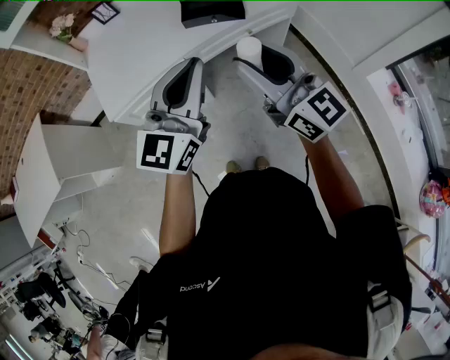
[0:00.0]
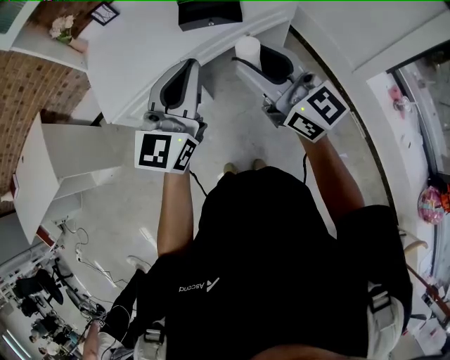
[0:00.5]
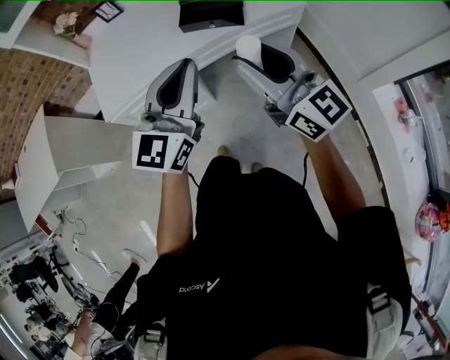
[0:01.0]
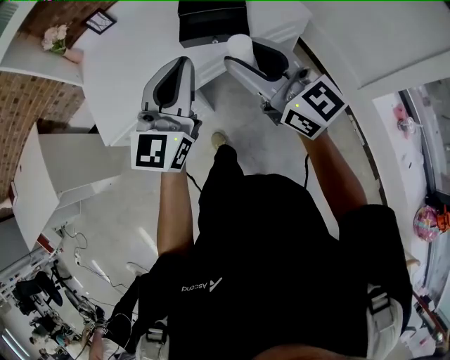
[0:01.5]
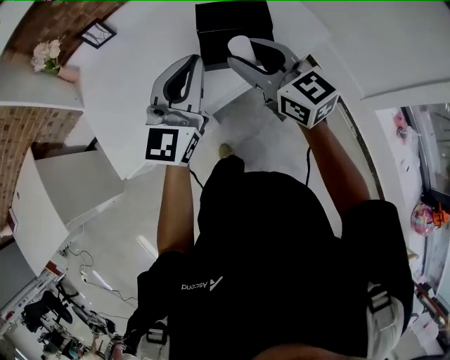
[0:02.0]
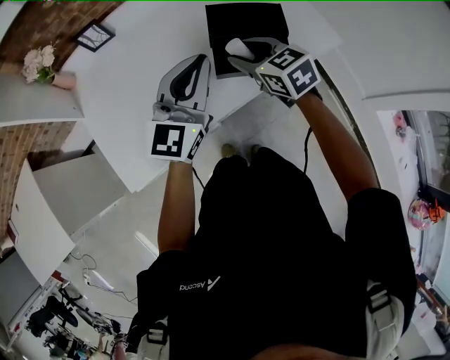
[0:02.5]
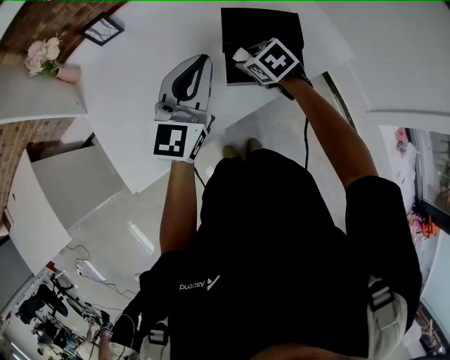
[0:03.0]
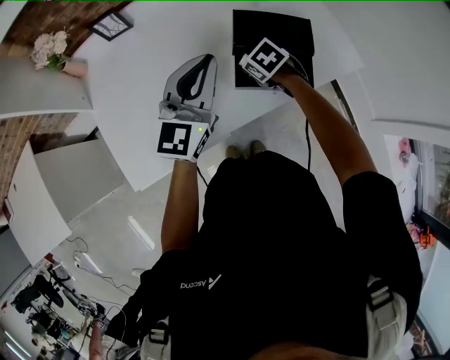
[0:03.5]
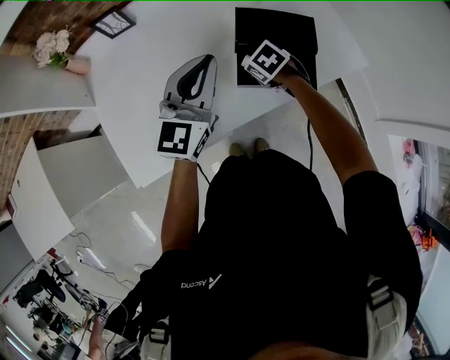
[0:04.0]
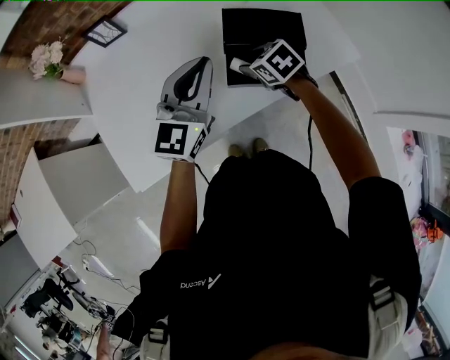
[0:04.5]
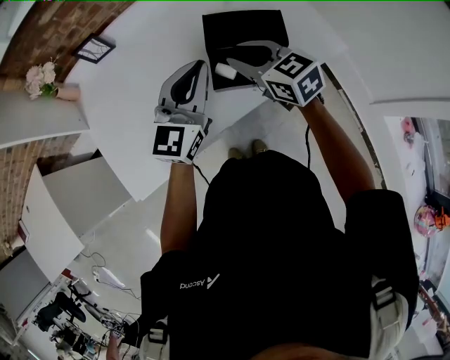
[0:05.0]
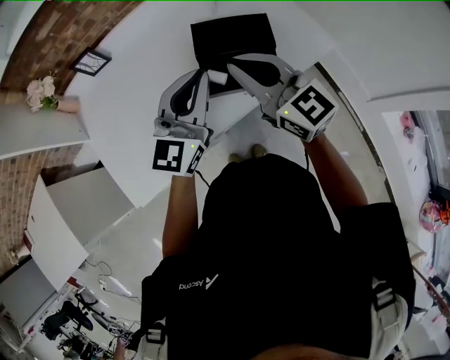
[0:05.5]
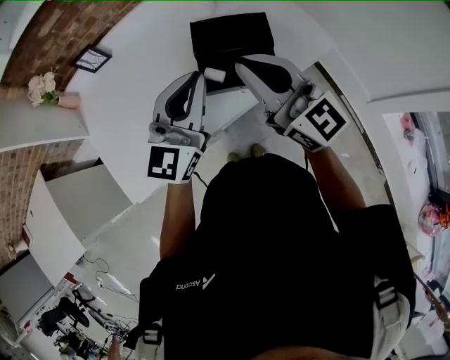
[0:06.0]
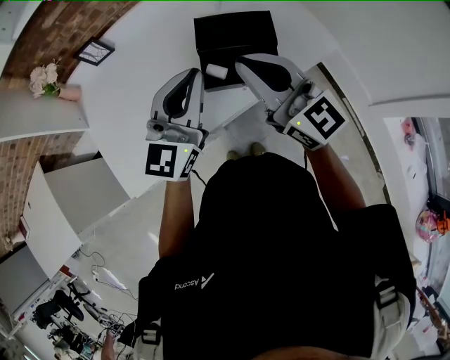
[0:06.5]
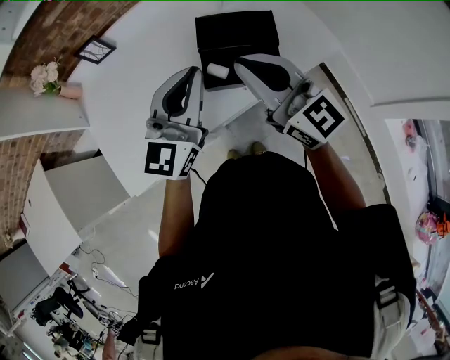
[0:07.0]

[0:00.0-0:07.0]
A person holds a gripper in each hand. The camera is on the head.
0:00.0 to 0:02.0: Both grippers travel together forward, some 35 cm.
0:02.0 to 0:03.5: The right gripper travels downward and forward by roughly 30 cm, and tips its fingers downward by roughly 60 degrees, while the left gripper heads forward, covering about 15 cm.
0:03.5 to 0:05.0: The right gripper shifts about 15 cm upward, and angles its fingers upward, by approximately 40 degrees. The left gripper travels to the right by approximately 5 cm.
0:05.0 to 0:07.0: The right gripper shifts roughly 15 cm upward and backward, tips its fingers upward by approximately 30 degrees, and closes. Meanwhile the left gripper changes place by roughly 5 cm.

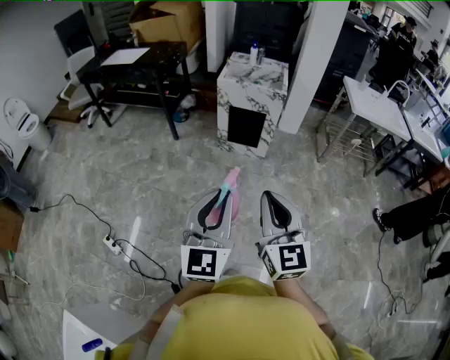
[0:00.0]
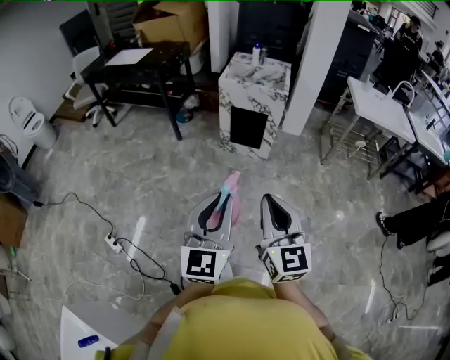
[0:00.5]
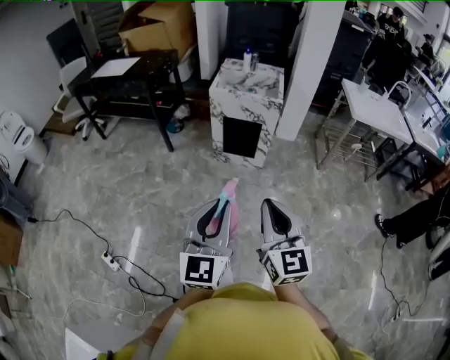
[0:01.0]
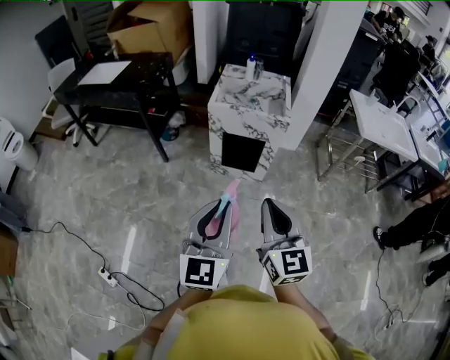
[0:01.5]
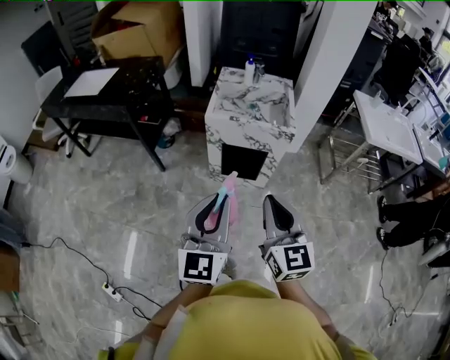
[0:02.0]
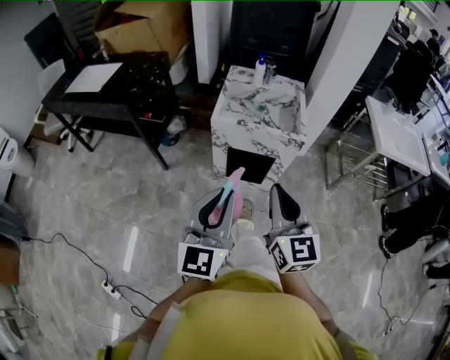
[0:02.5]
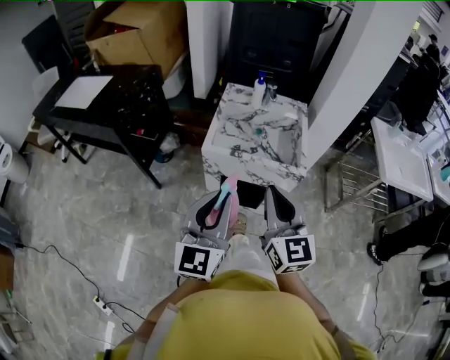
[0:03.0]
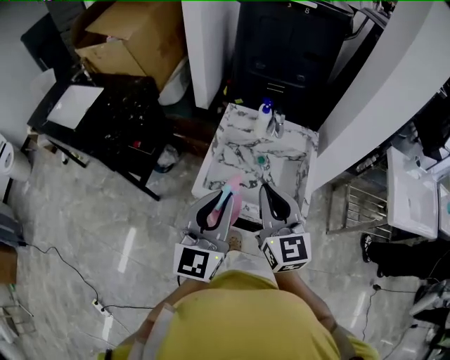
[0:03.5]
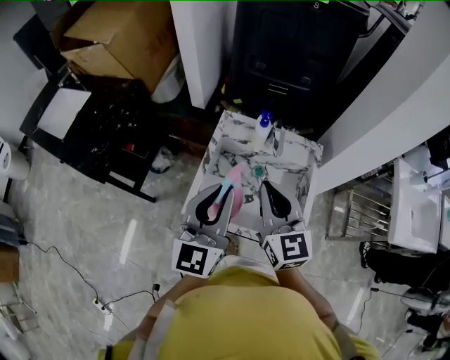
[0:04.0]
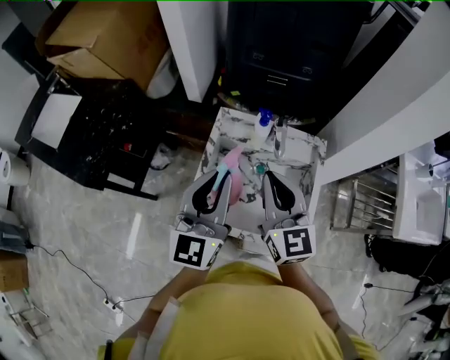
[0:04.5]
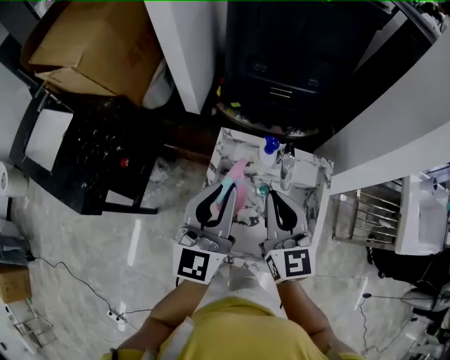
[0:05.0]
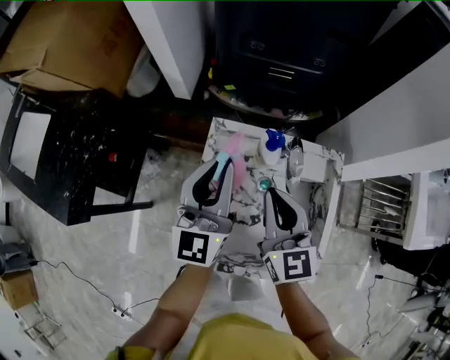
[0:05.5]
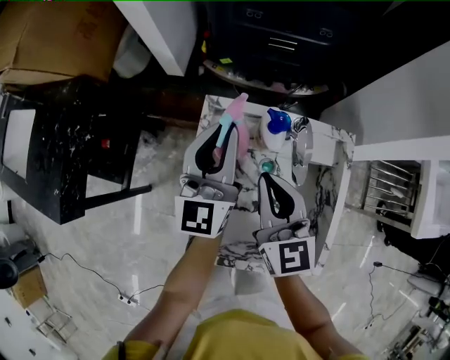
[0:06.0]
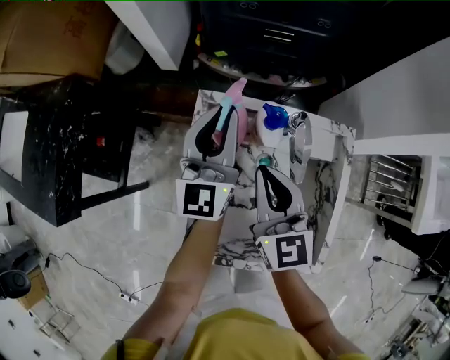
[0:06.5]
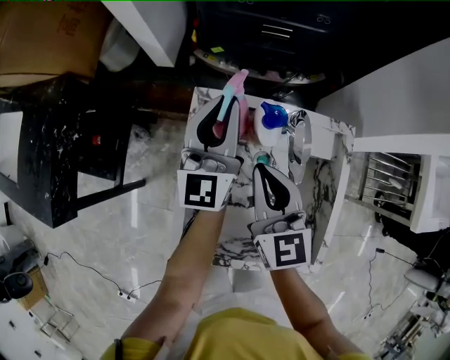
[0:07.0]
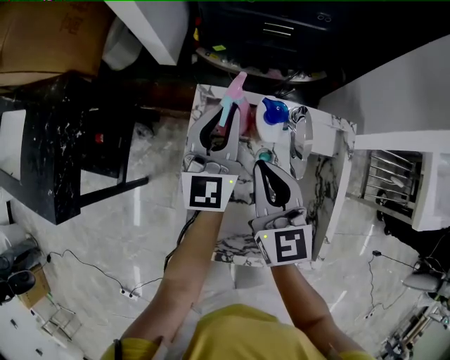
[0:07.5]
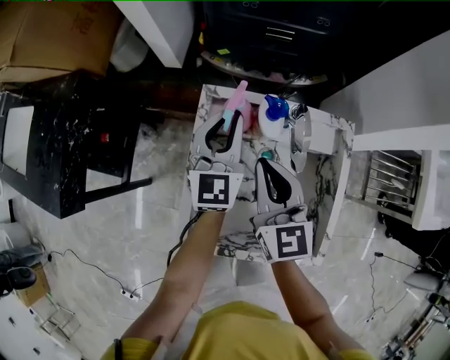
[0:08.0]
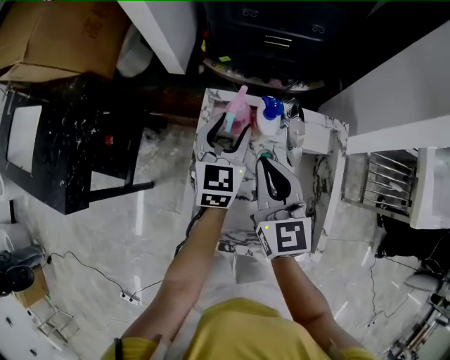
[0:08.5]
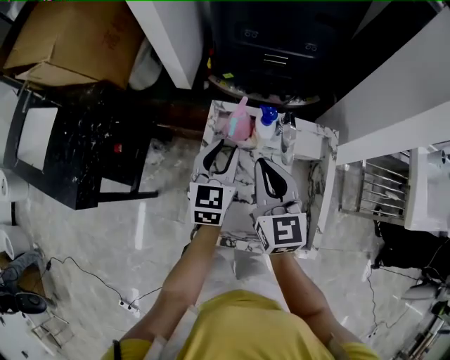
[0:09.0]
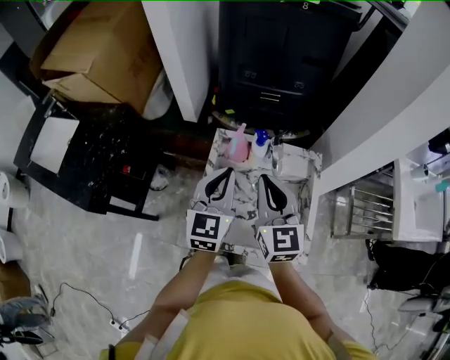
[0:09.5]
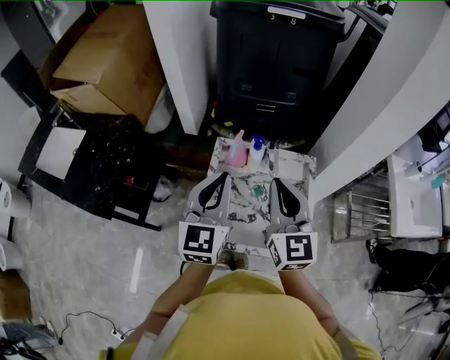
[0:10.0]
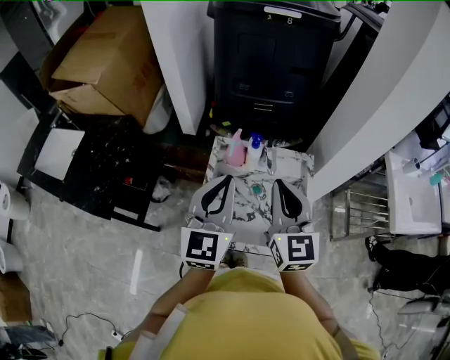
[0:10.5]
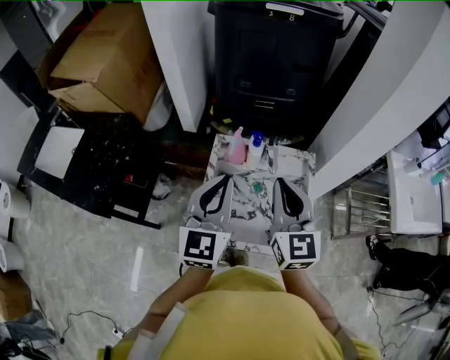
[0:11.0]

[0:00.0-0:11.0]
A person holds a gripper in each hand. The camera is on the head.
0:00.0 to 0:02.0: The two grippers go approximately 40 cm forward.
0:02.0 to 0:03.5: The two grippers travel together, forward, approximately 40 cm.
0:03.5 to 0:05.5: The right gripper heads forward and downward, covering approximately 30 cm; the left gripper shifts about 35 cm forward.
0:05.5 to 0:07.5: The right gripper moves downward, about 5 cm. Meanwhile the left gripper heads downward and forward, covering about 15 cm.
0:07.5 to 0:09.0: The left gripper moves backward, about 10 cm, swivels some 20 degrees, and opens up. The right gripper moves upward, roughly 5 cm.
0:09.0 to 0:11.0: Both grippers travel together upward and backward, about 20 cm. The left gripper closes.

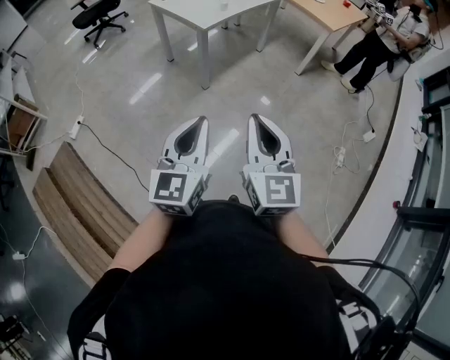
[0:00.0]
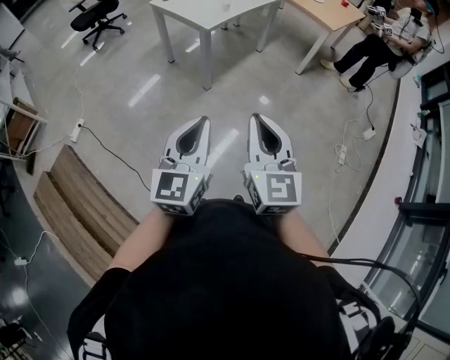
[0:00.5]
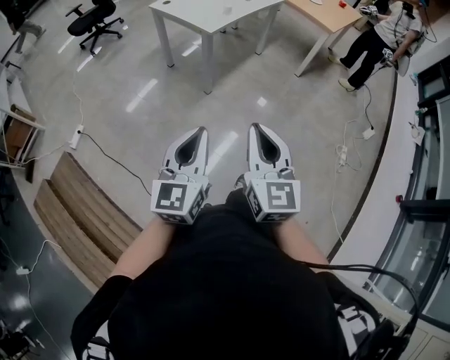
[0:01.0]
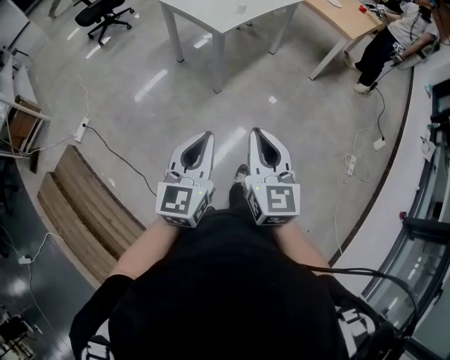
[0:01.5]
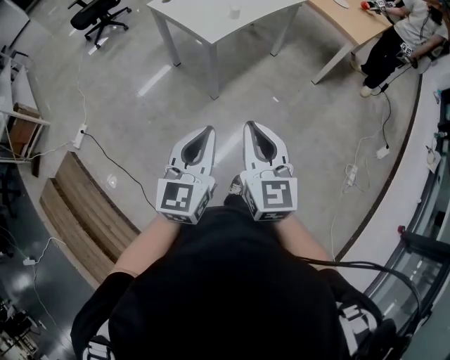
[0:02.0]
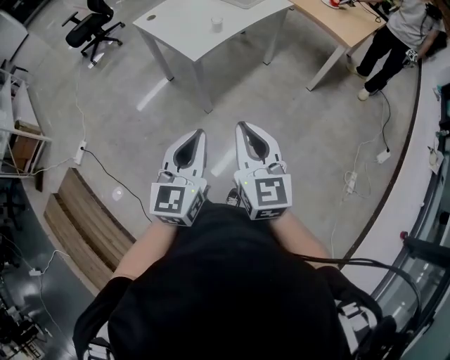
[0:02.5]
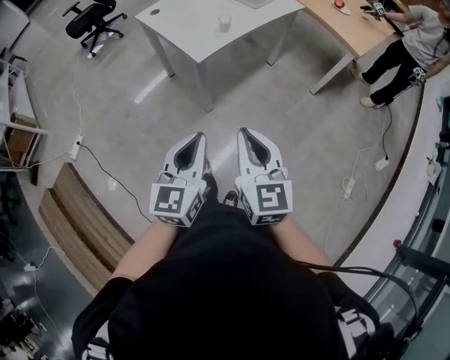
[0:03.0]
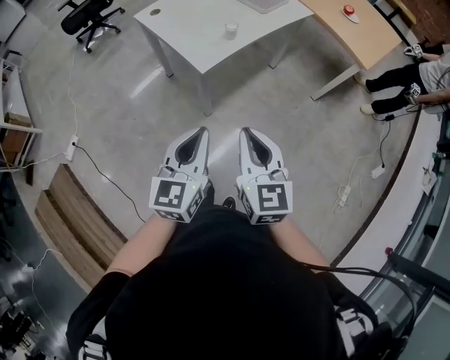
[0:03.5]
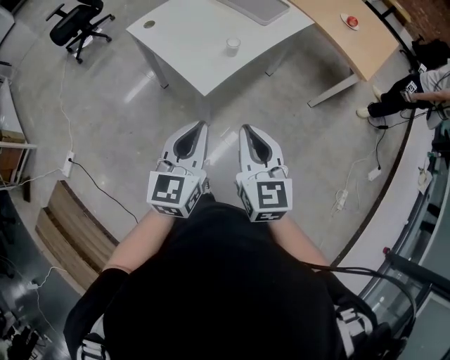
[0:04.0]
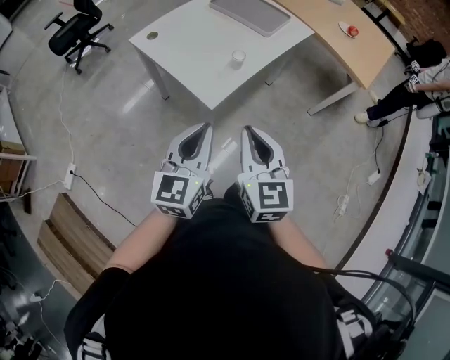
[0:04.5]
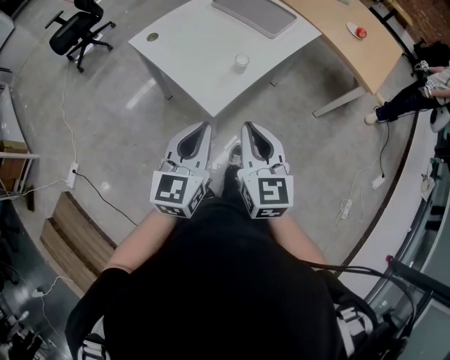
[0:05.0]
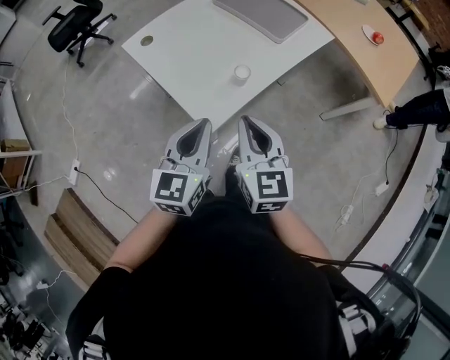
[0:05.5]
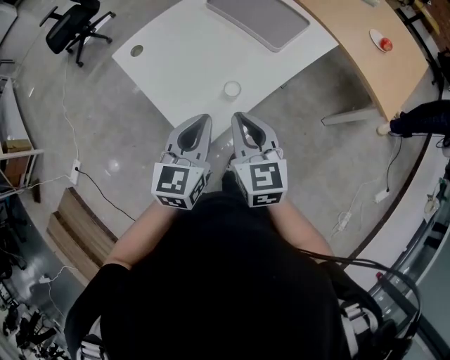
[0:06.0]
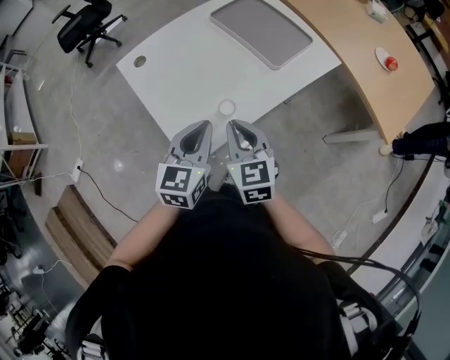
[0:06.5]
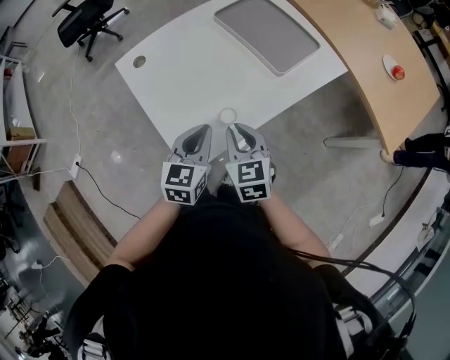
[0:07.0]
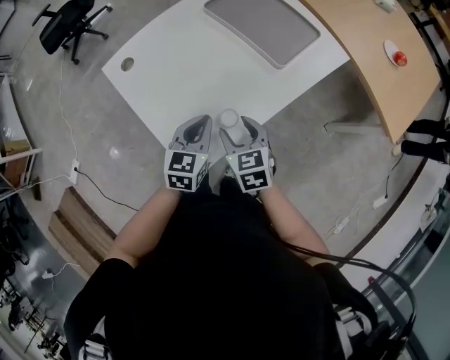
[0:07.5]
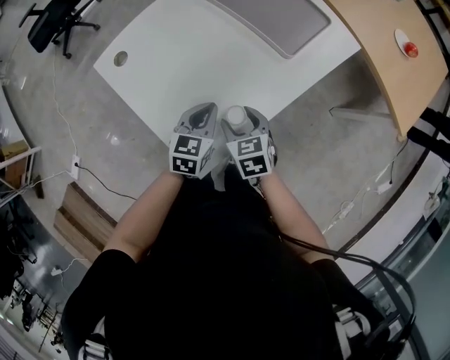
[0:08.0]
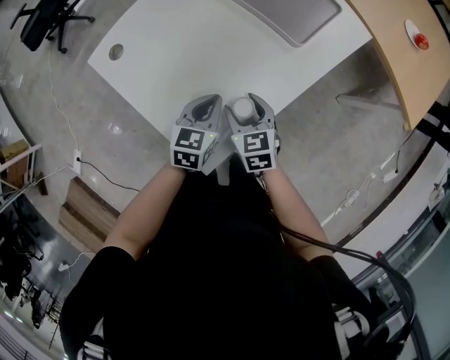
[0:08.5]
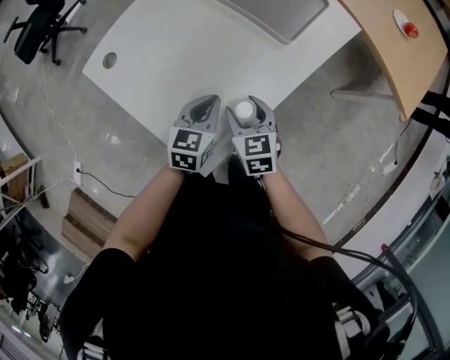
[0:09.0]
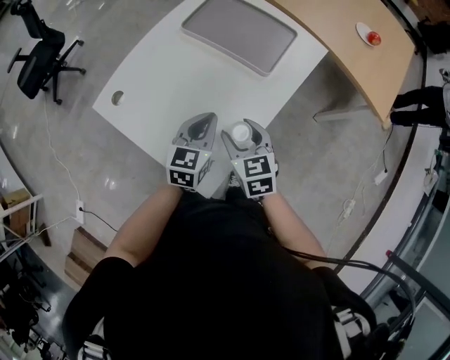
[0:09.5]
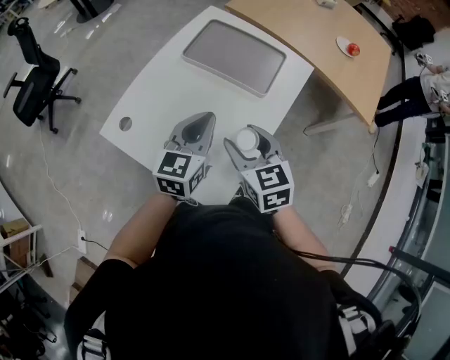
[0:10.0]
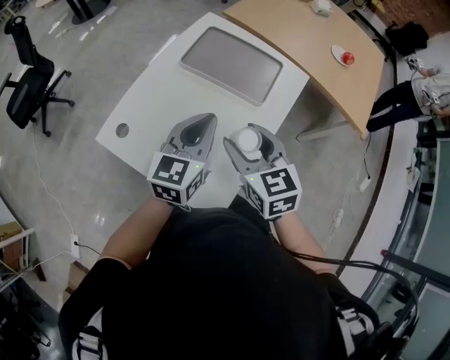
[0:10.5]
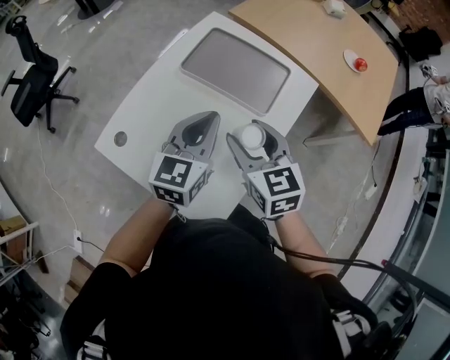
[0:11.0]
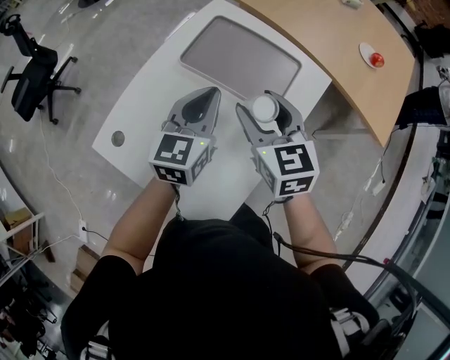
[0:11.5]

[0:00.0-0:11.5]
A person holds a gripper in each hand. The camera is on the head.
0:00.0 to 0:02.0: Both grippers move forward, some 25 cm.
0:02.0 to 0:04.0: The two grippers go approximately 35 cm forward.
0:04.0 to 0:06.0: Both grippers travel together forward, approximately 30 cm.
0:06.0 to 0:07.5: The left gripper moves forward and downward, approximately 20 cm; the right gripper goes approximately 20 cm downward and forward, swivels roughly 20 degrees, and opens up.
0:07.5 to 0:09.5: The right gripper reaches roughly 10 cm downward, then returns; the left gripper goes about 5 cm forward, and travels downward and back again, about 10 cm each way.
0:09.5 to 0:11.5: The two grippers go approximately 25 cm forward and upward.
